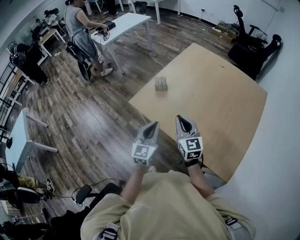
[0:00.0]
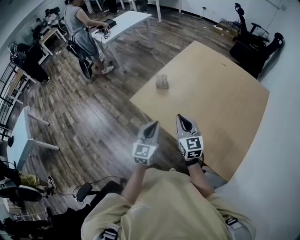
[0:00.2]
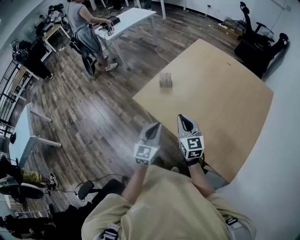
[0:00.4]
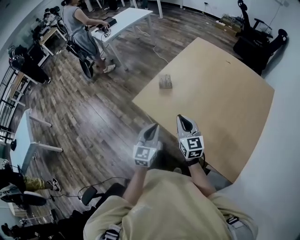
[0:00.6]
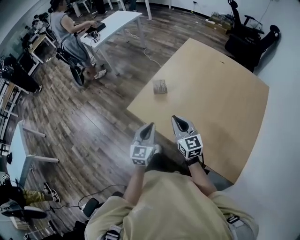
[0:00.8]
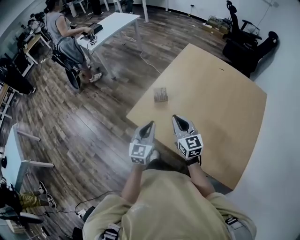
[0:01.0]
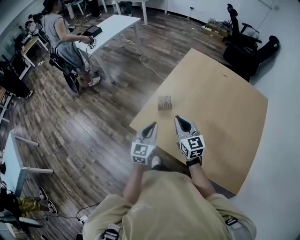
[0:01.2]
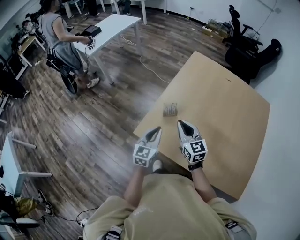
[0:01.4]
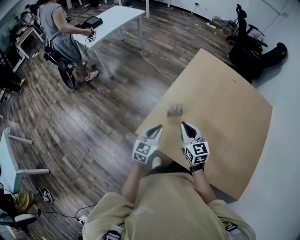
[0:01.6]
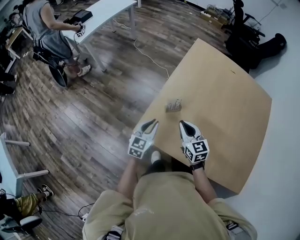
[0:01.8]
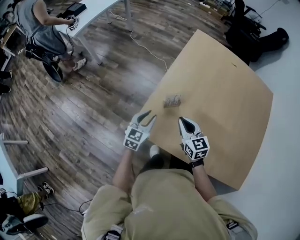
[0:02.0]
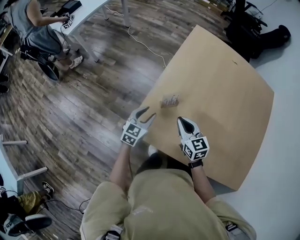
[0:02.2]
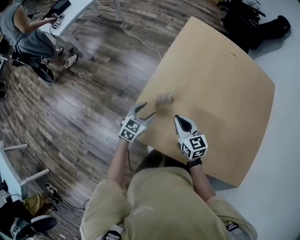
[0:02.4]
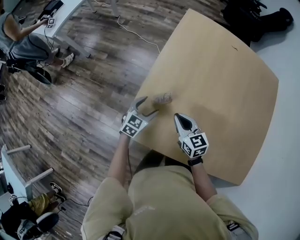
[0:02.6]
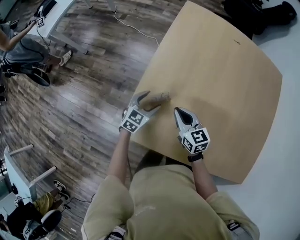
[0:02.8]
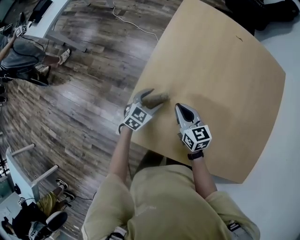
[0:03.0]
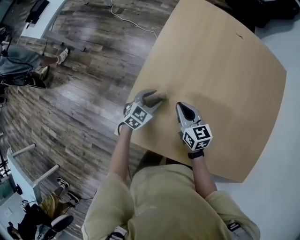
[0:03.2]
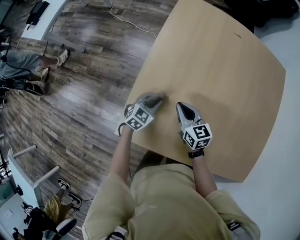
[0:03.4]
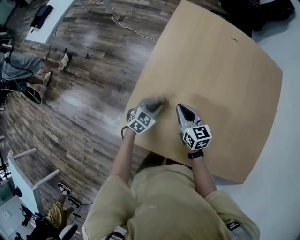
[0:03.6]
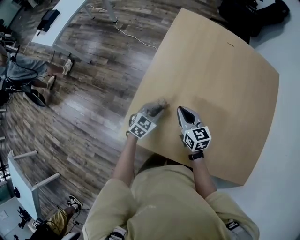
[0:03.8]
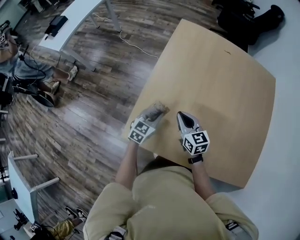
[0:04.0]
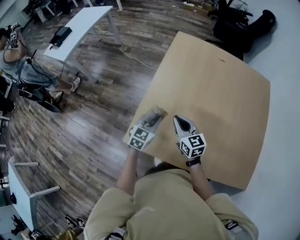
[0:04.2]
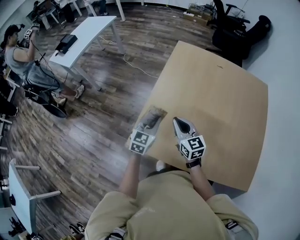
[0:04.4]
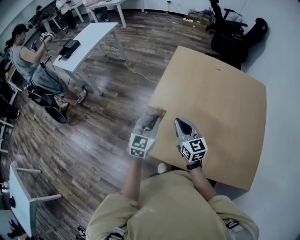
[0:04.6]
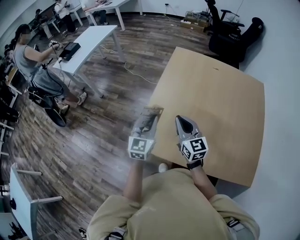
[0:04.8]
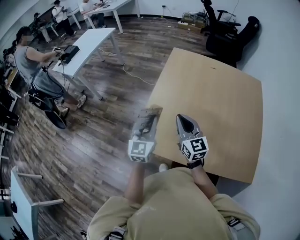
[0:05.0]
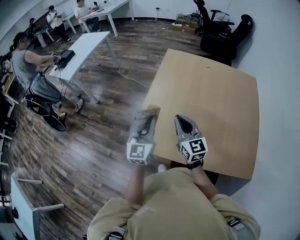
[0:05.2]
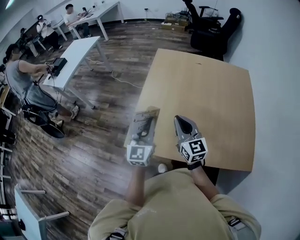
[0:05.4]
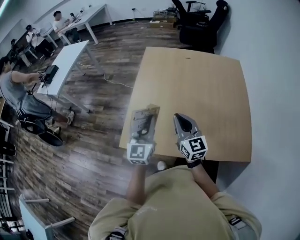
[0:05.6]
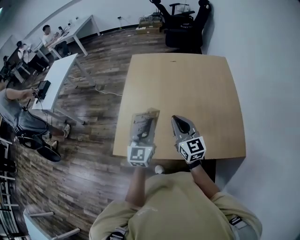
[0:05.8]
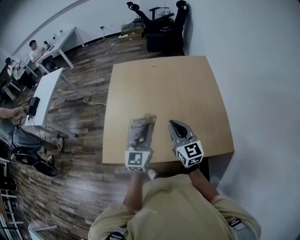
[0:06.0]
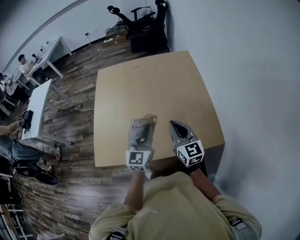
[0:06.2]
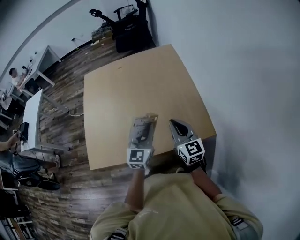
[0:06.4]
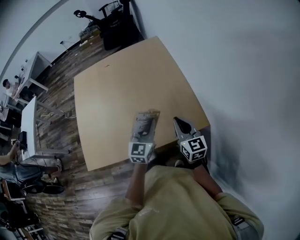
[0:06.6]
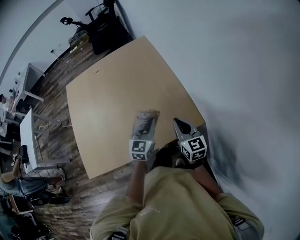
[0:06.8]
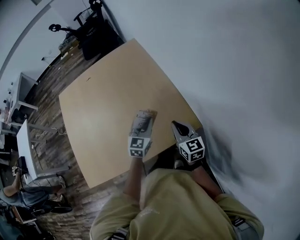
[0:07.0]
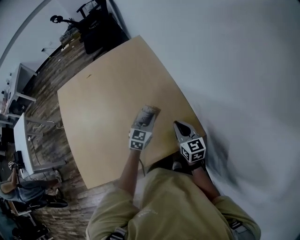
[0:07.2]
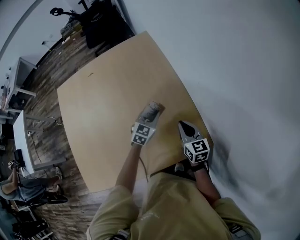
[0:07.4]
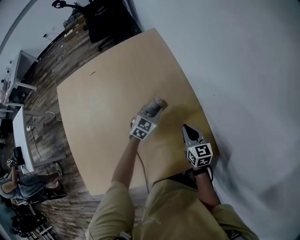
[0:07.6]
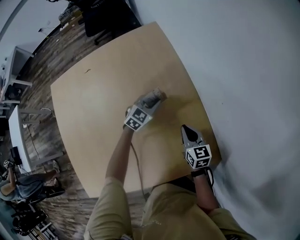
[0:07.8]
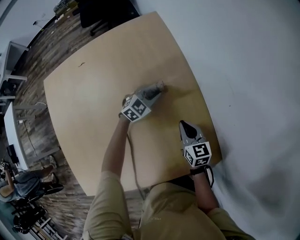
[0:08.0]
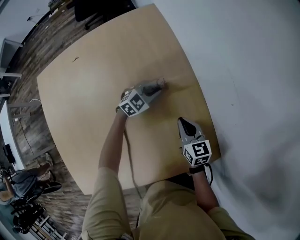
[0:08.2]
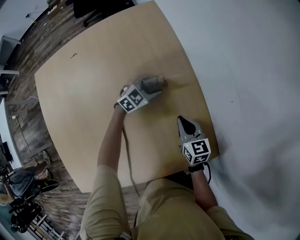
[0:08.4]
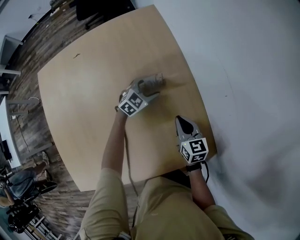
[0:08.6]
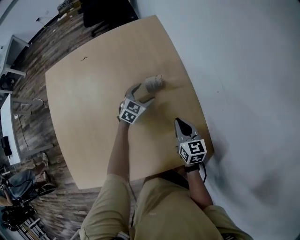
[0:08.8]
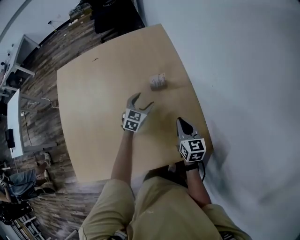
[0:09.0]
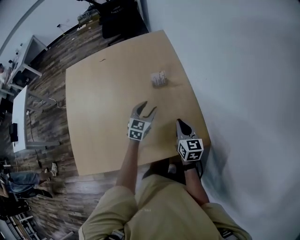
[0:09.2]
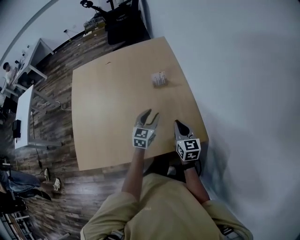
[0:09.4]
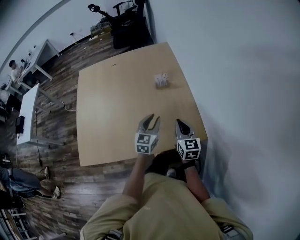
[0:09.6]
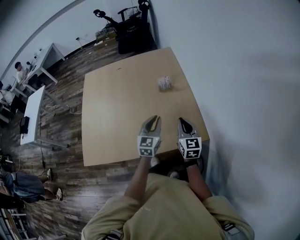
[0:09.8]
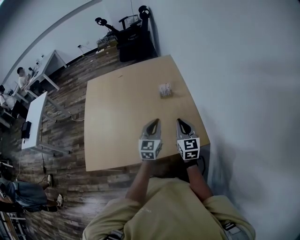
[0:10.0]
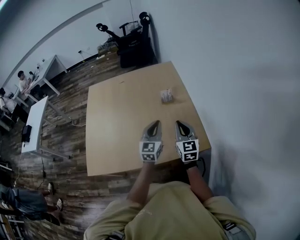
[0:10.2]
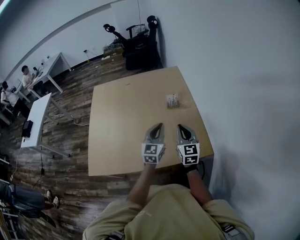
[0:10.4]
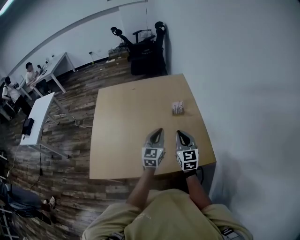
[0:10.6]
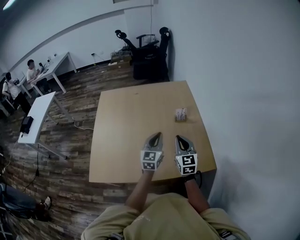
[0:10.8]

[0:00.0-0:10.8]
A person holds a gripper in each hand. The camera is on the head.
0.0 to 1.6 s: Both grippers move forward and to the left, approximately 30 cm.
1.6 to 3.0 s: Both grippers travel together downward and forward, some 25 cm. The left gripper turns by roughly 30 degrees, and opens up.
3.0 to 4.6 s: Both grippers move upward and backward, roughly 25 cm. The left gripper swivels about 30 degrees, and closes, while the right gripper changes its angle by approximately 20 degrees.
4.6 to 6.2 s: The right gripper changes place by some 40 cm, and turns by roughly 30 degrees; the left gripper moves about 40 cm, and swivels approximately 20 degrees.
6.2 to 7.8 s: The left gripper changes place by approximately 60 cm, and points its fingers approximately 30 degrees further downward. The right gripper moves about 40 cm, and rotates approximately 30 degrees.
7.8 to 9.2 s: Both grippers move backward and upward, some 20 cm. The left gripper turns by some 30 degrees, and opens up.
9.2 to 10.8 s: The left gripper shifts about 25 cm upward, backward and to the left, swivels approximately 20 degrees, and closes; the right gripper heads upward, to the left and backward, covering about 20 cm, and turns by roughly 30 degrees.

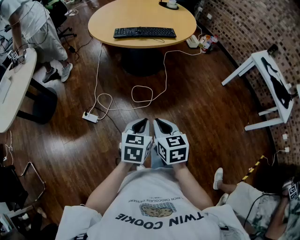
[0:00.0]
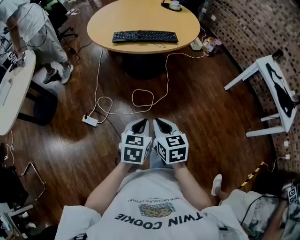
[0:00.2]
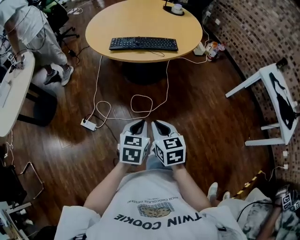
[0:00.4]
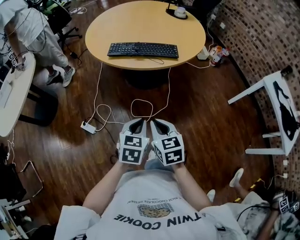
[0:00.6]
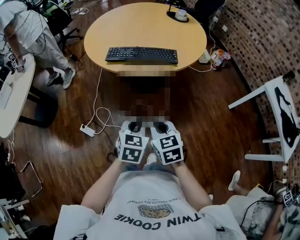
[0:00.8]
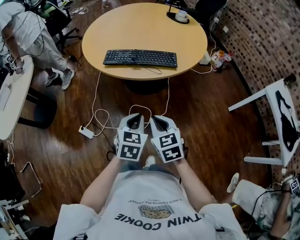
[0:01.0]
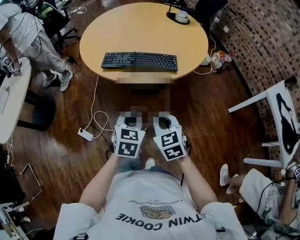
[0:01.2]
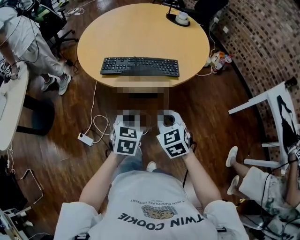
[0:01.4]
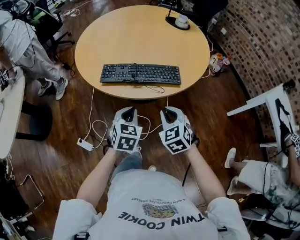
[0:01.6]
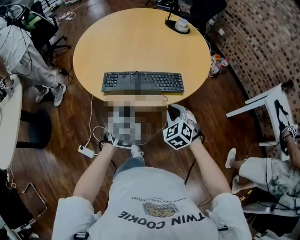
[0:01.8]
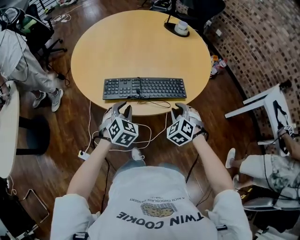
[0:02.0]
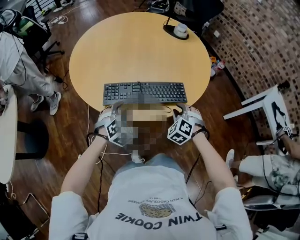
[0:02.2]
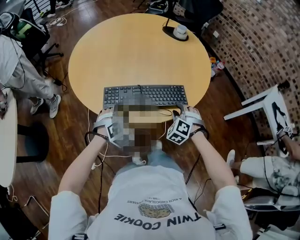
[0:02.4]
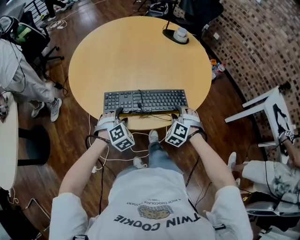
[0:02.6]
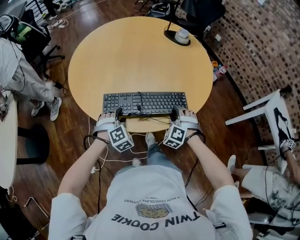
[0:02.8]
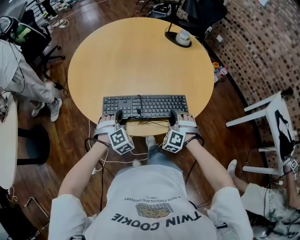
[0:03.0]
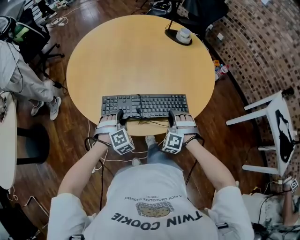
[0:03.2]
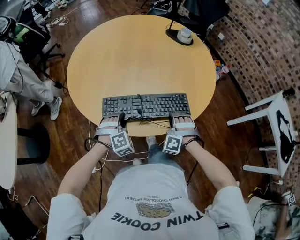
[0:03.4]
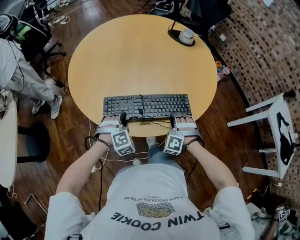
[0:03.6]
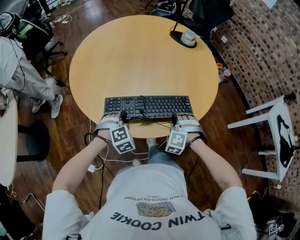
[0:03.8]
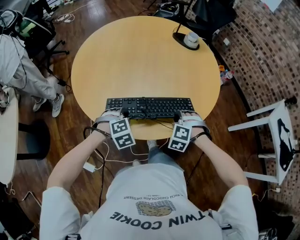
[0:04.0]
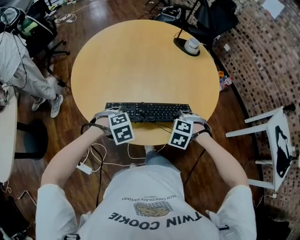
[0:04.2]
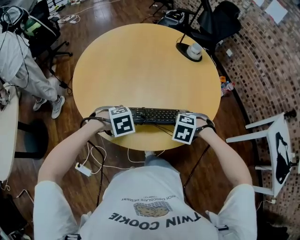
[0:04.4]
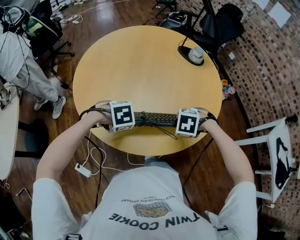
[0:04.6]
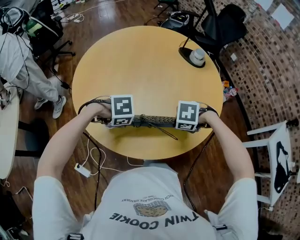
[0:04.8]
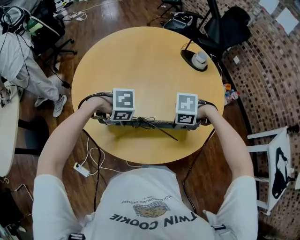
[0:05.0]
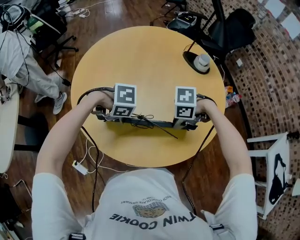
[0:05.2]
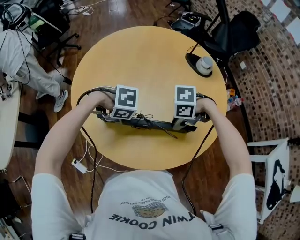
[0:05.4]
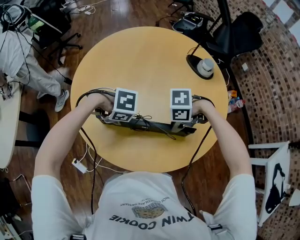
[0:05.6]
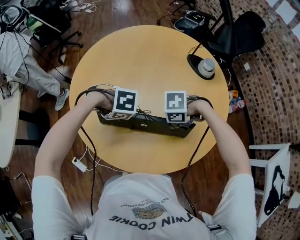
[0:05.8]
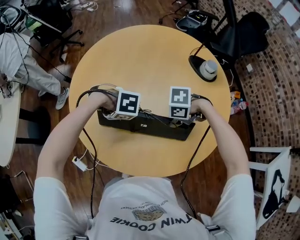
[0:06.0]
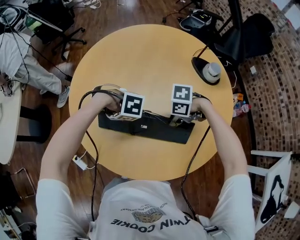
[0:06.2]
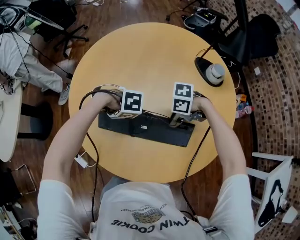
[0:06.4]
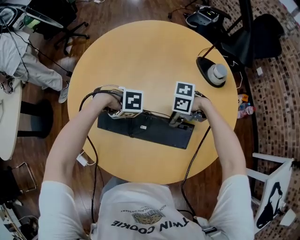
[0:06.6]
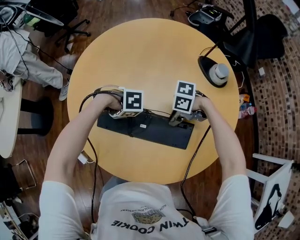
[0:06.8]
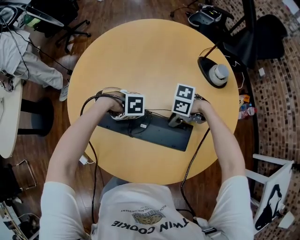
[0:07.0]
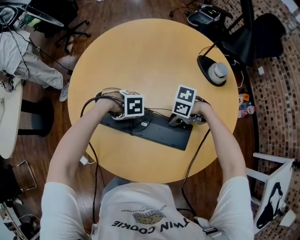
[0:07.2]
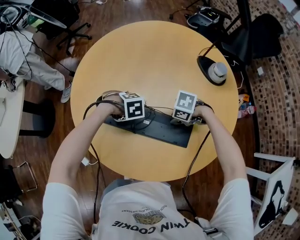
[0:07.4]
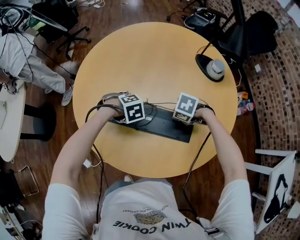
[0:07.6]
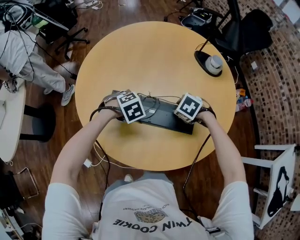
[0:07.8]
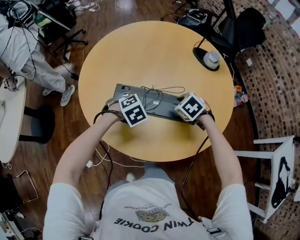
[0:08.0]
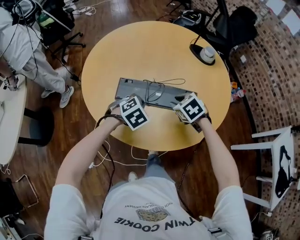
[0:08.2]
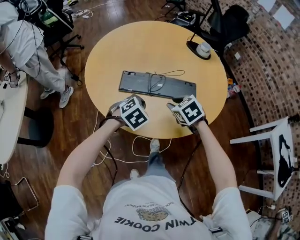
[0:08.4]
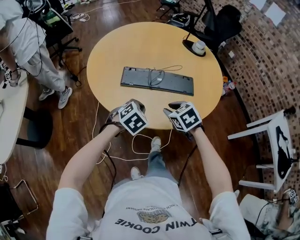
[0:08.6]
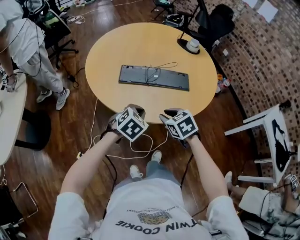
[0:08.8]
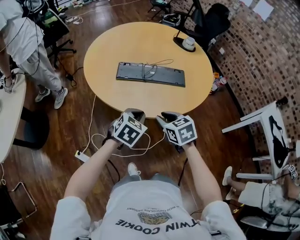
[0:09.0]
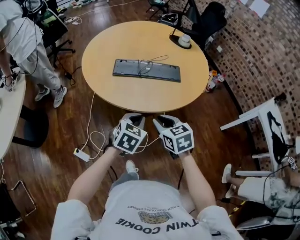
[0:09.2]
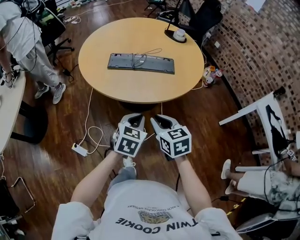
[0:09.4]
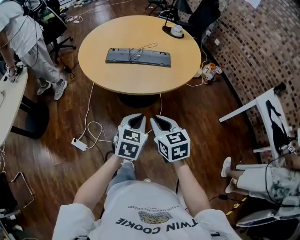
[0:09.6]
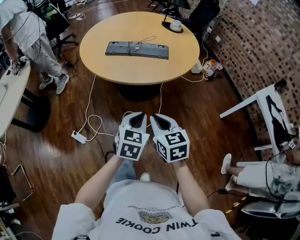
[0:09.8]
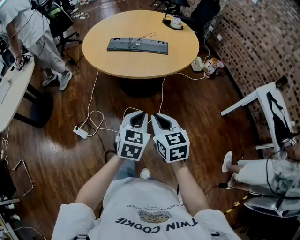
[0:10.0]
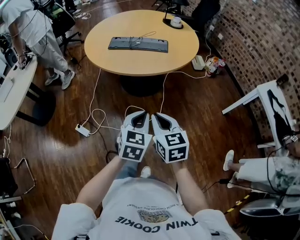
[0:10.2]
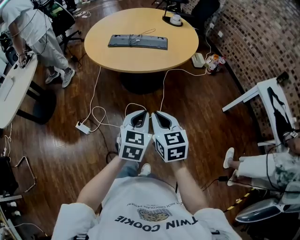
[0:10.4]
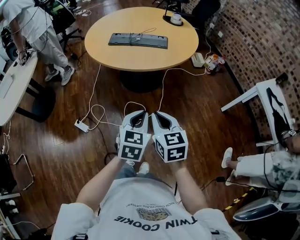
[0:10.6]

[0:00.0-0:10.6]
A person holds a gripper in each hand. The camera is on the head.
0.0 to 1.6 s: Both grippers are carried forward, roughly 50 cm. The right gripper changes its angle by approximately 40 degrees.
1.6 to 3.0 s: The left gripper travels forward, to the left and downward by about 25 cm, twists some 50 degrees clockwise, seen from behind, and opens up, while the right gripper moves forward and downward, approximately 20 cm, rotates around the line of its fingers by approximately 40 degrees, counterclockwise from behind, and opens.
3.0 to 4.6 s: Both grippers travel together upward, approximately 5 cm. The left gripper tips its fingers downward by approximately 30 degrees. The right gripper tilts its fingers roughly 50 degrees downward, and closes.
4.6 to 6.0 s: The left gripper moves some 15 cm. Meanwhile the right gripper shifts by about 15 cm, and changes its angle by approximately 30 degrees.
6.0 to 7.6 s: Both grippers travel together downward, roughly 5 cm. The right gripper rotates about 20 degrees. The left gripper changes its angle by approximately 30 degrees.
7.6 to 9.0 s: The left gripper shifts by some 40 cm, tilts its fingers roughly 40 degrees upward, and closes up; the right gripper moves some 40 cm, and tips its fingers upward by approximately 30 degrees.
9.0 to 10.6 s: The right gripper travels backward by roughly 30 cm, and changes its angle by approximately 20 degrees, while the left gripper moves backward and to the right, roughly 35 cm, and changes its angle by about 20 degrees.

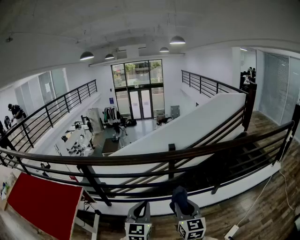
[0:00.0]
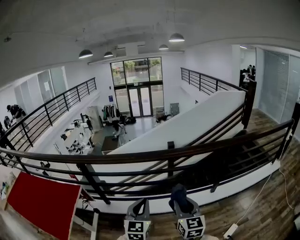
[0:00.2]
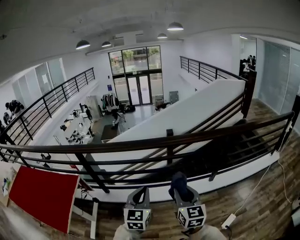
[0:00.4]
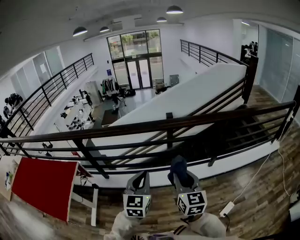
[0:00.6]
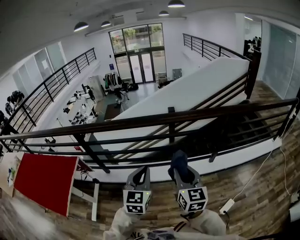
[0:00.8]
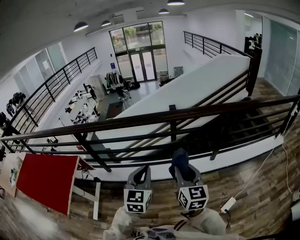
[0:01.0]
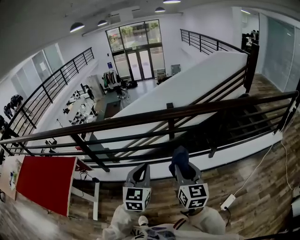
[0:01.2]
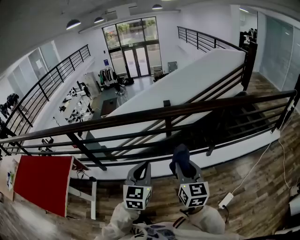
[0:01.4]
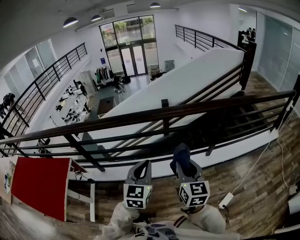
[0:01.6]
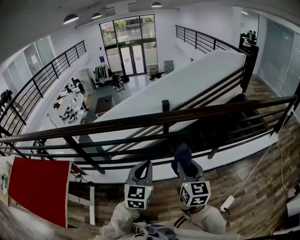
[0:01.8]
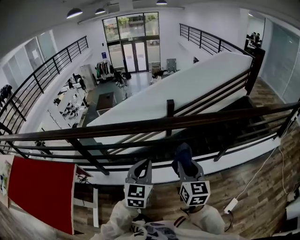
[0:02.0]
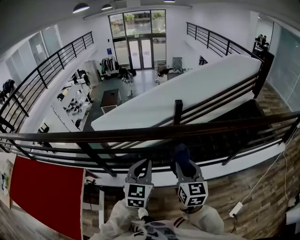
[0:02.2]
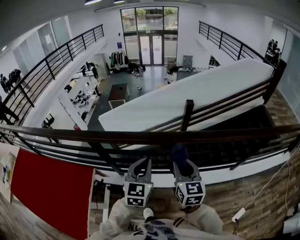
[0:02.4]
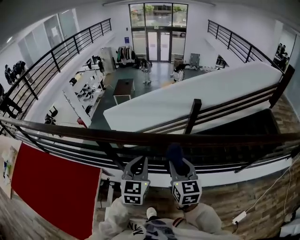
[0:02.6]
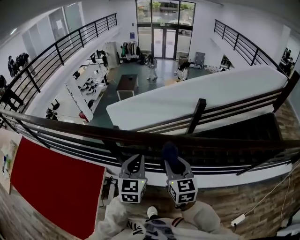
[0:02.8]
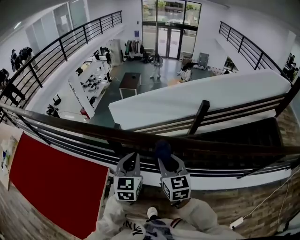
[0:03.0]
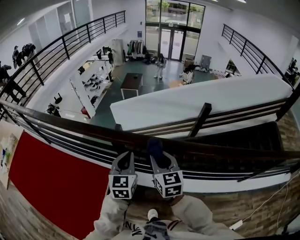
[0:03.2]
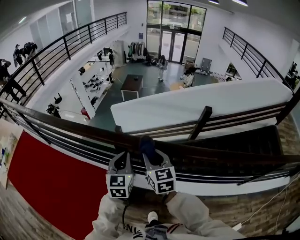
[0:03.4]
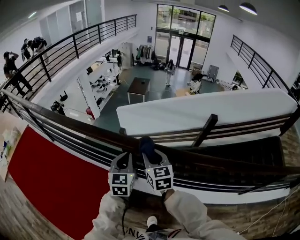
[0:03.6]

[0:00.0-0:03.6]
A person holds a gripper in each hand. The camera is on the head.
0.0 to 1.8 s: The left gripper is displaced forward and to the right by roughly 10 cm. The right gripper heads forward, covering some 10 cm.
1.8 to 3.6 s: The pair of grippers is taken approximately 70 cm. The left gripper swivels some 30 degrees, while the right gripper rotates approximately 30 degrees.
